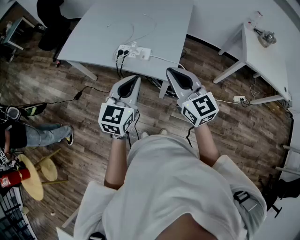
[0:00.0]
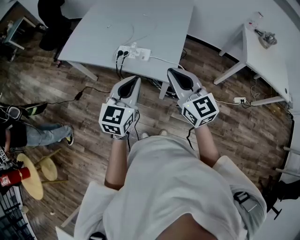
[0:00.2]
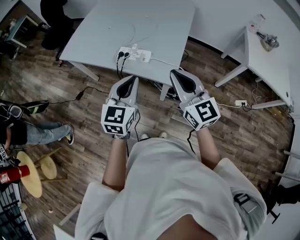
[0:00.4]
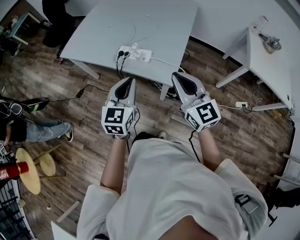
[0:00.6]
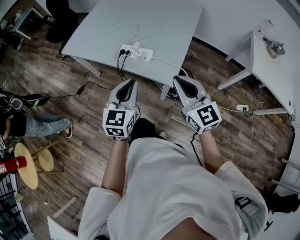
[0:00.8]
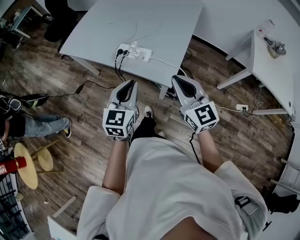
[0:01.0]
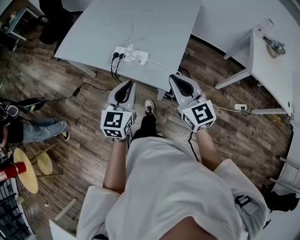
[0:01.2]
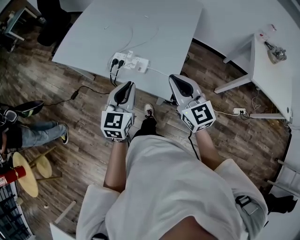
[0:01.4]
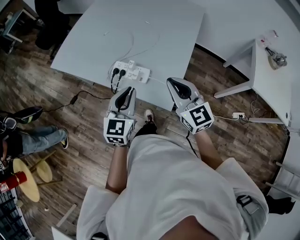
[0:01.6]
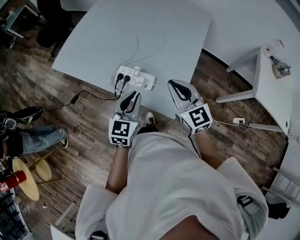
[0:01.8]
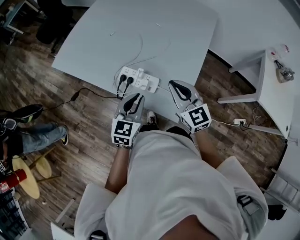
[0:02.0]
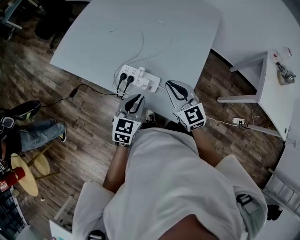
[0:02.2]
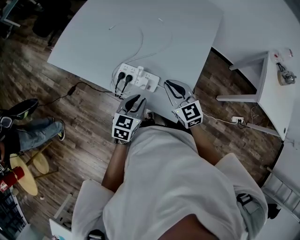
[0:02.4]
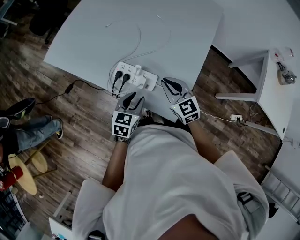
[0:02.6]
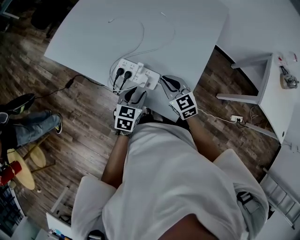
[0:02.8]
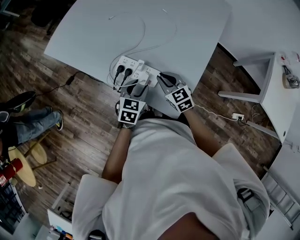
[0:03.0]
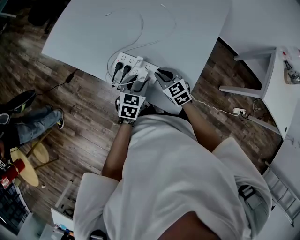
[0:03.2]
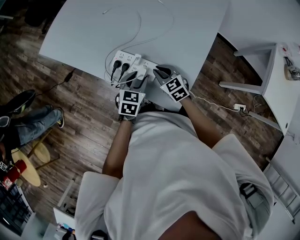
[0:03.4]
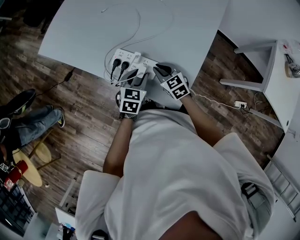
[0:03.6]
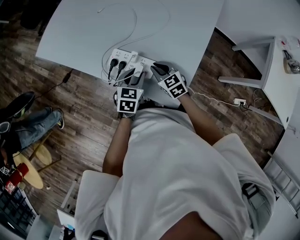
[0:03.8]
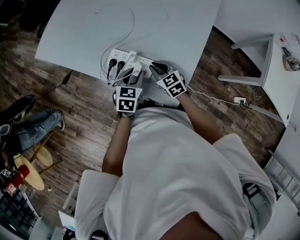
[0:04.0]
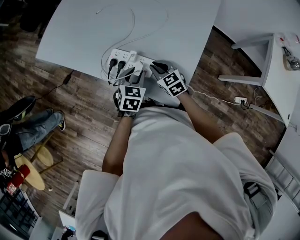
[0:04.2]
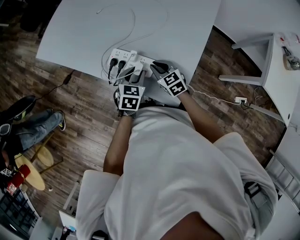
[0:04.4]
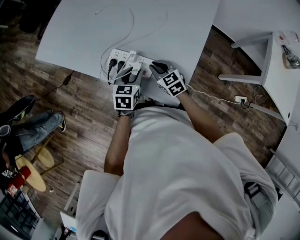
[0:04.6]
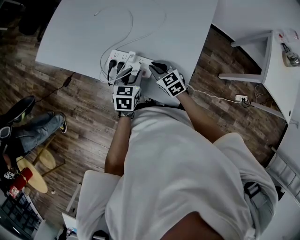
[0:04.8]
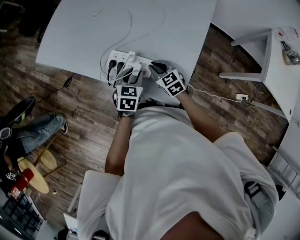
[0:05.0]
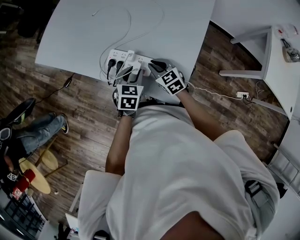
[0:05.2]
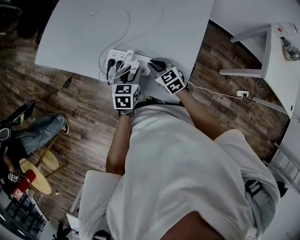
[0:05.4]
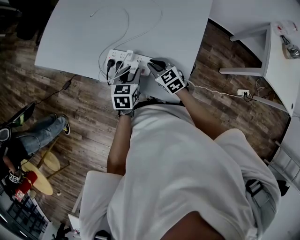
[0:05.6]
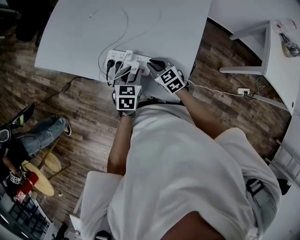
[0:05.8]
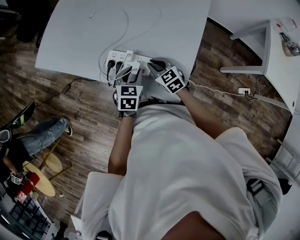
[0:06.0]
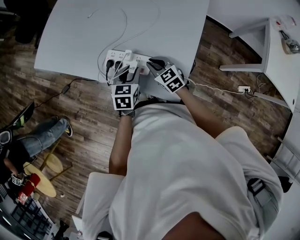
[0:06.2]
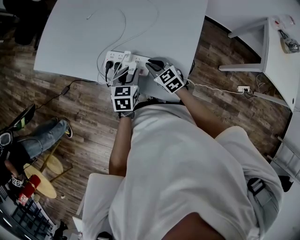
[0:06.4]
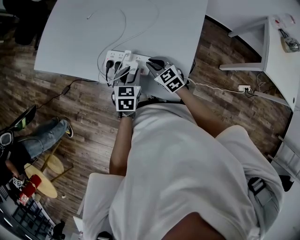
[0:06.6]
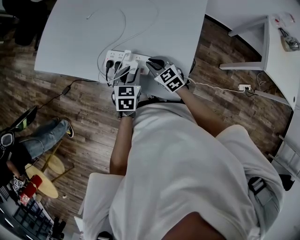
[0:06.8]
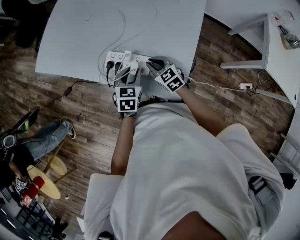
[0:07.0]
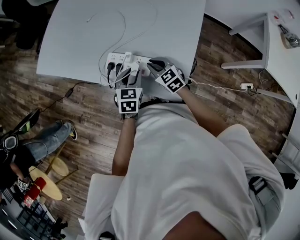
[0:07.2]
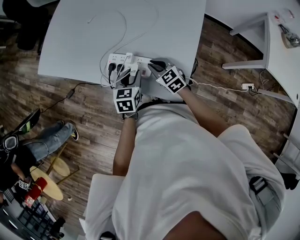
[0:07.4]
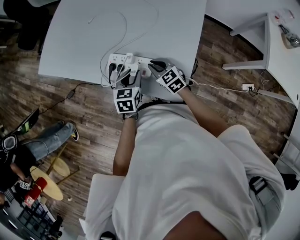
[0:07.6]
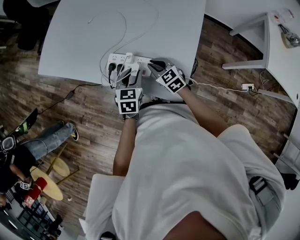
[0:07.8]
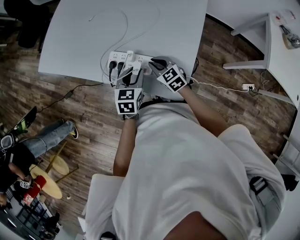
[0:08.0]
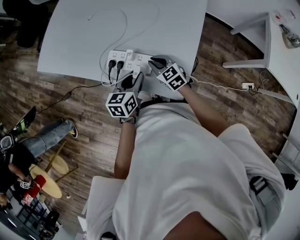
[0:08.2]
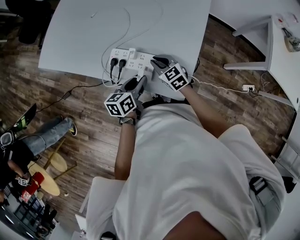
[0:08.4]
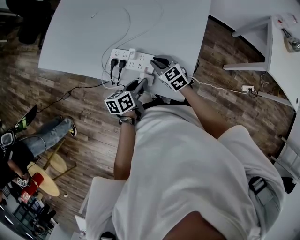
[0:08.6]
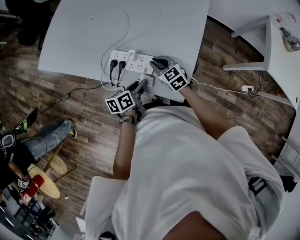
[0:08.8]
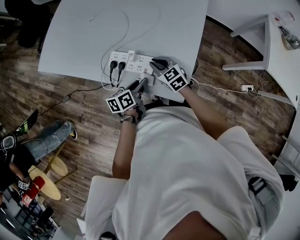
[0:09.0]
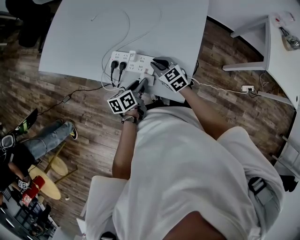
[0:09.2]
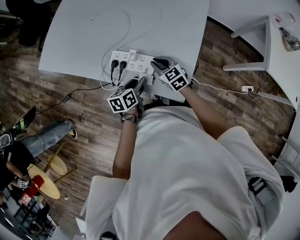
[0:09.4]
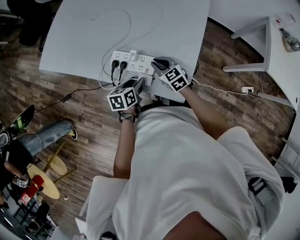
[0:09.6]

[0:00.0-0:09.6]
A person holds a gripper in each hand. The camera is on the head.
0.0 to 1.6 s: Both grippers move forward and downward, about 15 cm.
1.6 to 3.2 s: The two grippers go roughly 25 cm downward and forward. The right gripper rotates approximately 30 degrees, while the left gripper swivels approximately 30 degrees, and opens.
3.2 to 8.0 s: The grippers stay close to where they were, moving slightly.
8.0 to 9.6 s: The left gripper heads downward, covering about 5 cm, and swivels roughly 30 degrees.

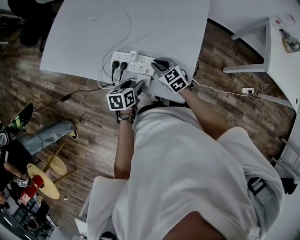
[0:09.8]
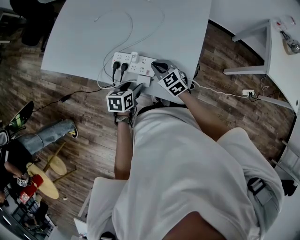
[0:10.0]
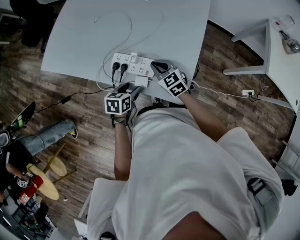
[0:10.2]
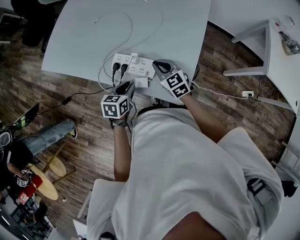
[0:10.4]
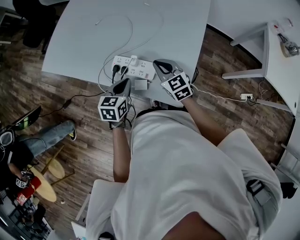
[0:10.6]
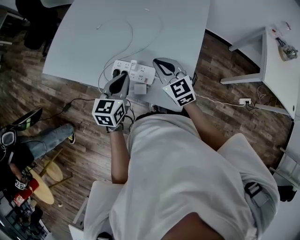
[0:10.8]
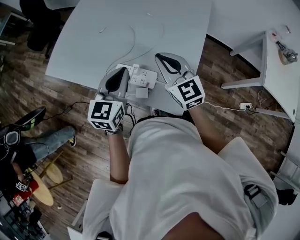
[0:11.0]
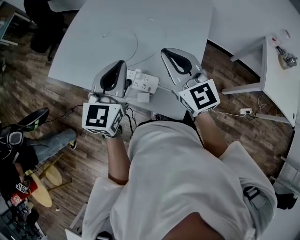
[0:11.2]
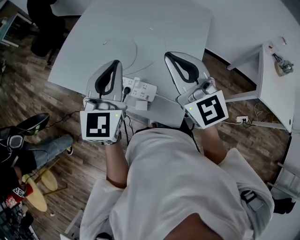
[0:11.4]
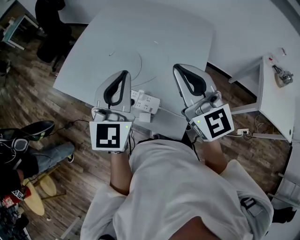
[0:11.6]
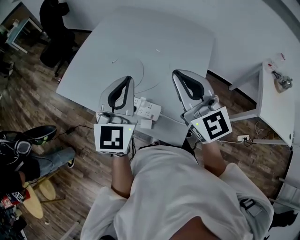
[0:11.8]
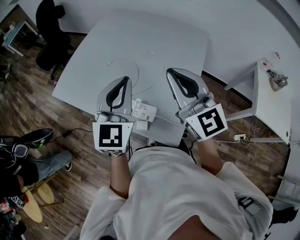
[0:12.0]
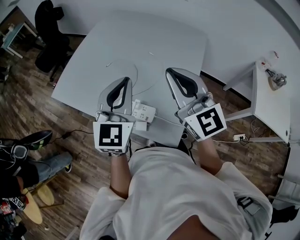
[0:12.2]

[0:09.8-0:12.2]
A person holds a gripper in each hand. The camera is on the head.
9.8 to 11.0 s: Both grippers travel together upward, some 25 cm. The left gripper changes its angle by some 40 degrees, and closes up. The right gripper changes its angle by about 30 degrees.
11.0 to 12.2 s: The two grippers go approximately 15 cm upward. The left gripper turns by roughly 20 degrees.

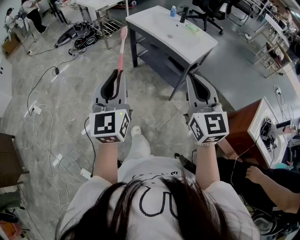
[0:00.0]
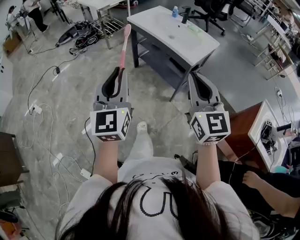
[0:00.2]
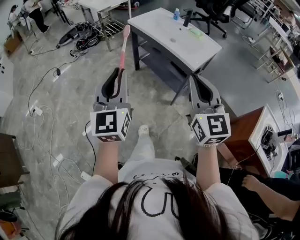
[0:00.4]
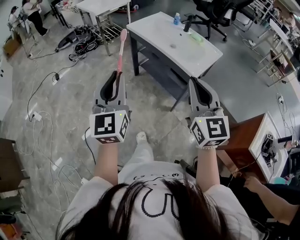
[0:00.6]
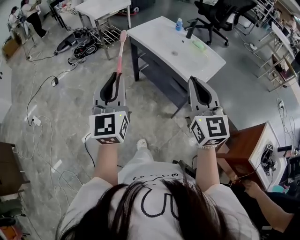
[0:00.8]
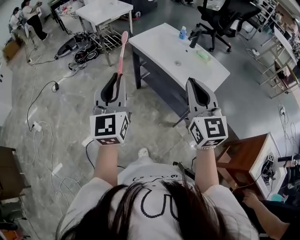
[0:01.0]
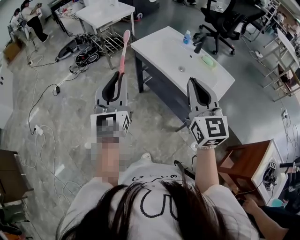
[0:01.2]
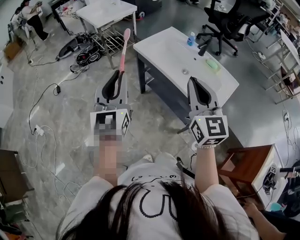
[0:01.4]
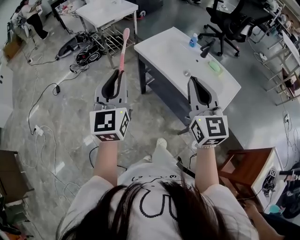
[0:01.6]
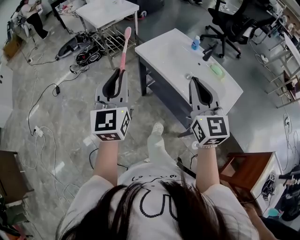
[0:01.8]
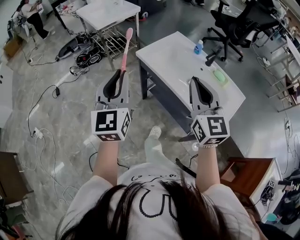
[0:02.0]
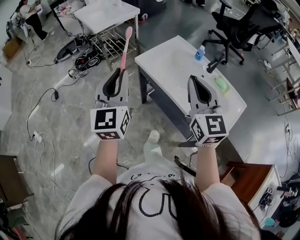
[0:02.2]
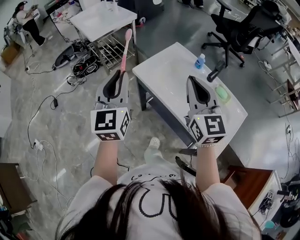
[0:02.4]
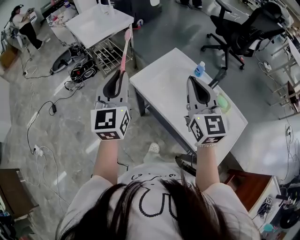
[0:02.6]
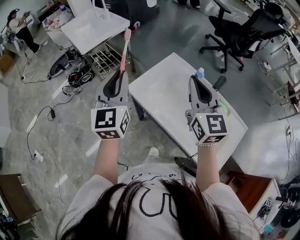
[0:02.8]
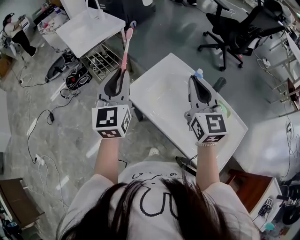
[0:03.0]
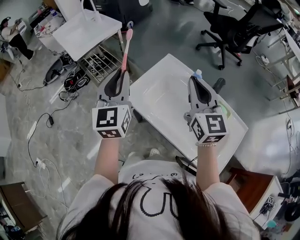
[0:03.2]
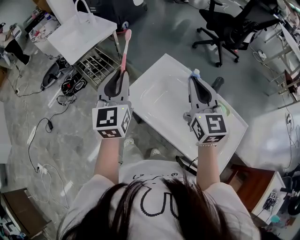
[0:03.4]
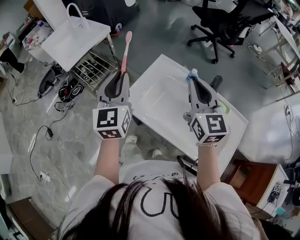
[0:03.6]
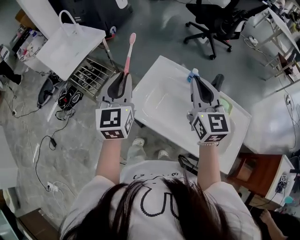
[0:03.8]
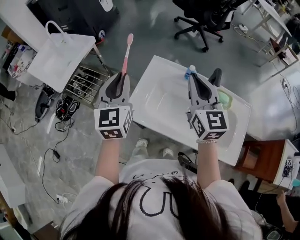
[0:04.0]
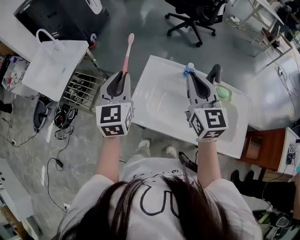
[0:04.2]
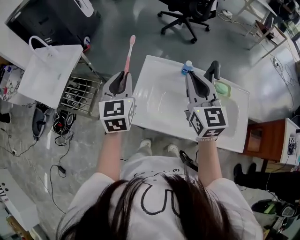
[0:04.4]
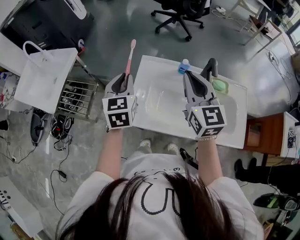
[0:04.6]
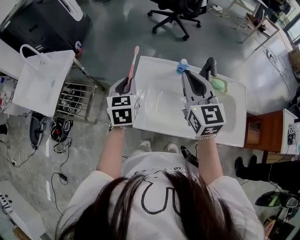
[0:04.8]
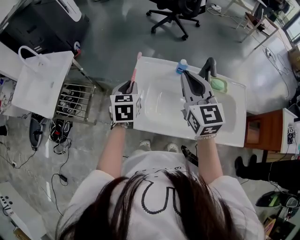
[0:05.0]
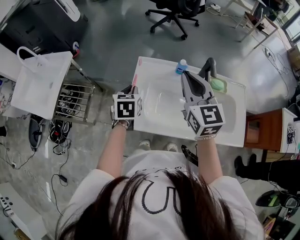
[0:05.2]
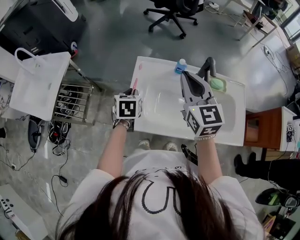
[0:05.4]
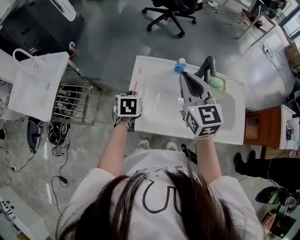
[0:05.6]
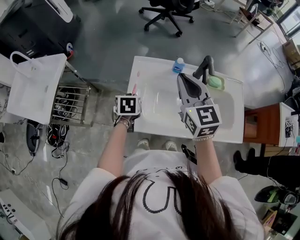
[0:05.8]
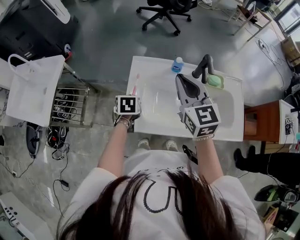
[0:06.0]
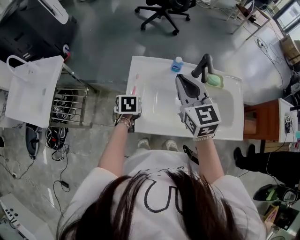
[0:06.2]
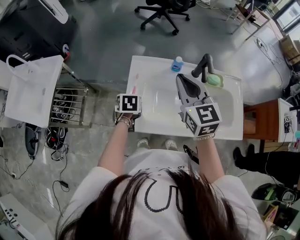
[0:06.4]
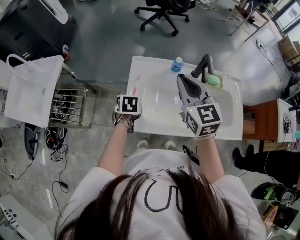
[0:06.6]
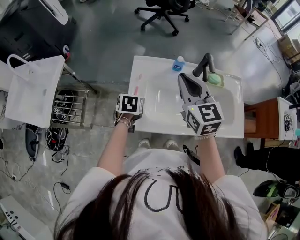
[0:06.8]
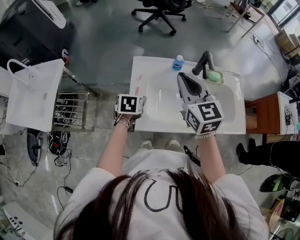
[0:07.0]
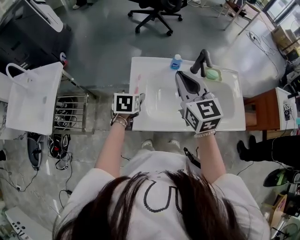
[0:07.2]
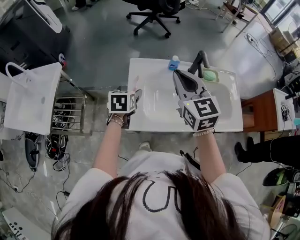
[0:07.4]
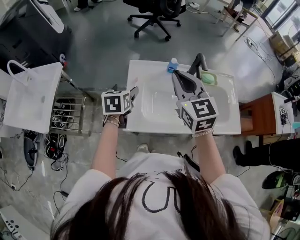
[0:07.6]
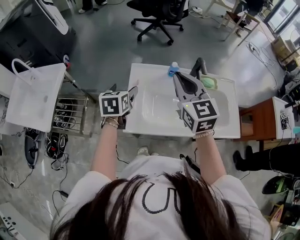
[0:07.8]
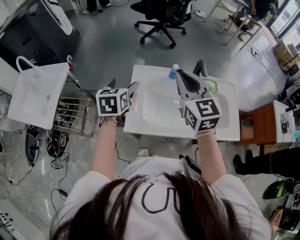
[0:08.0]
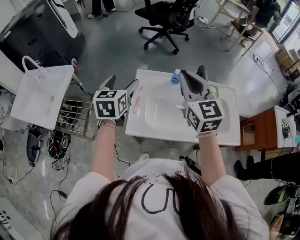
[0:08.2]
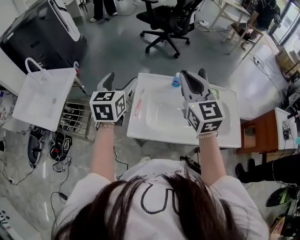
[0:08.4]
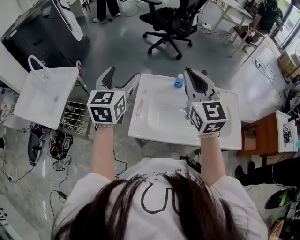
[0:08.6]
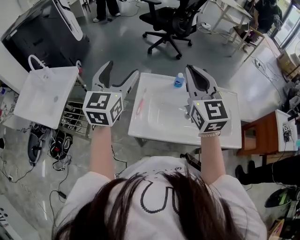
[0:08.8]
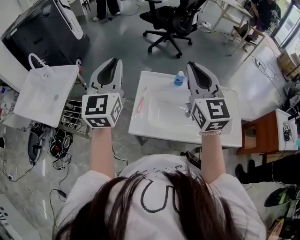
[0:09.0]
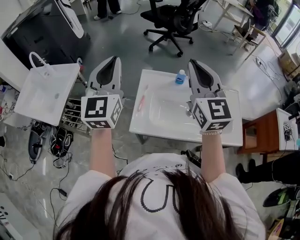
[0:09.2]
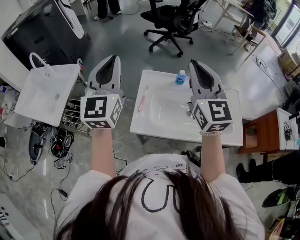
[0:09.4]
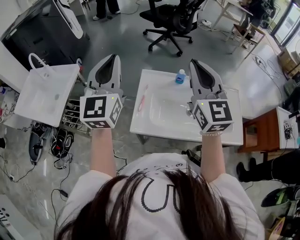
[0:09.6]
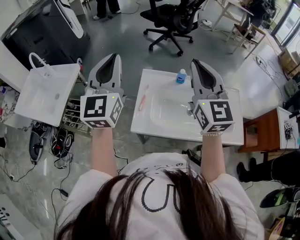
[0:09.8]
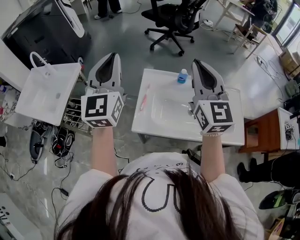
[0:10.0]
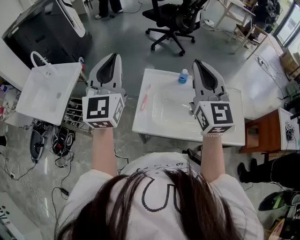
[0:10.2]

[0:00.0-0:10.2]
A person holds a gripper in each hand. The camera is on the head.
0.0 to 1.4 s: The grippers both shift forward by roughly 35 cm.
1.4 to 3.0 s: Both grippers move forward, approximately 40 cm.
3.0 to 4.4 s: The left gripper ends up roughly 20 cm from where it was, and turns by about 30 degrees, while the right gripper changes place by approximately 5 cm, and changes its angle by roughly 30 degrees.
4.4 to 5.8 s: The left gripper travels downward by approximately 20 cm, and tilts its fingers some 40 degrees downward.
5.8 to 7.2 s: The left gripper opens up.
7.2 to 8.8 s: The right gripper goes about 10 cm upward. The left gripper heads upward, covering about 30 cm, and angles its fingers upward, by about 50 degrees.
8.8 to 10.2 s: The left gripper moves upward, roughly 5 cm, and closes up.

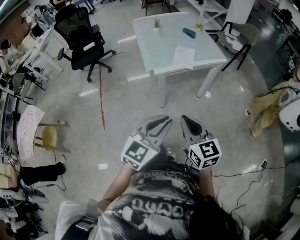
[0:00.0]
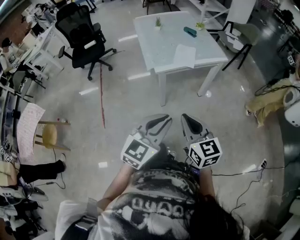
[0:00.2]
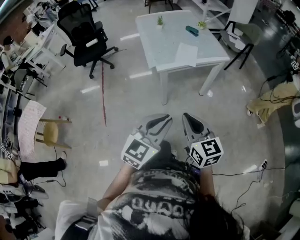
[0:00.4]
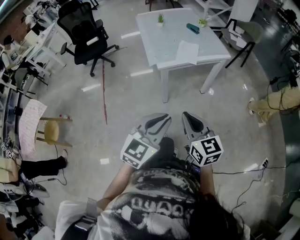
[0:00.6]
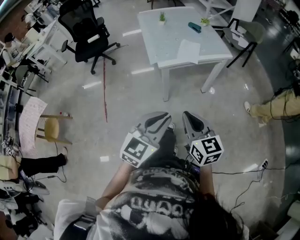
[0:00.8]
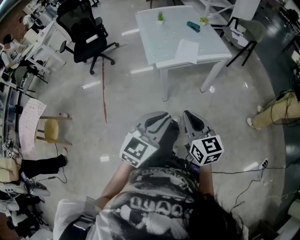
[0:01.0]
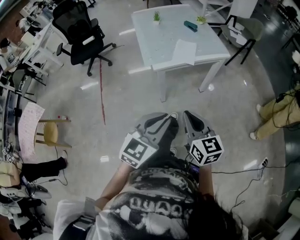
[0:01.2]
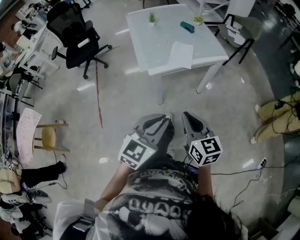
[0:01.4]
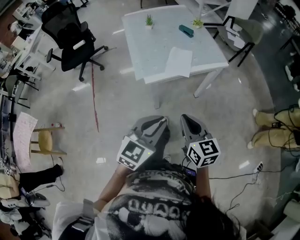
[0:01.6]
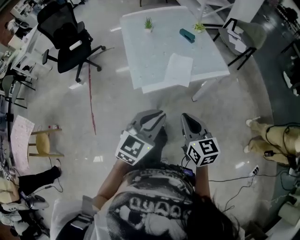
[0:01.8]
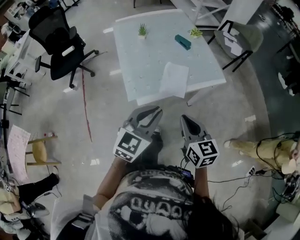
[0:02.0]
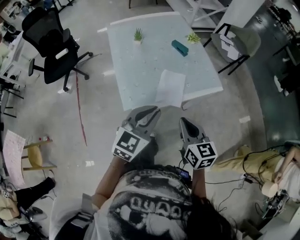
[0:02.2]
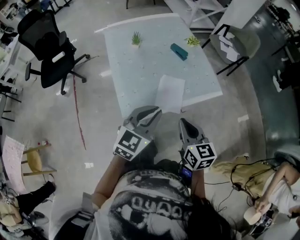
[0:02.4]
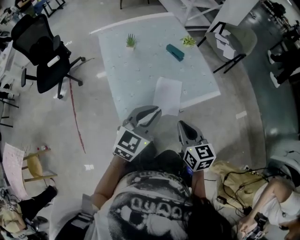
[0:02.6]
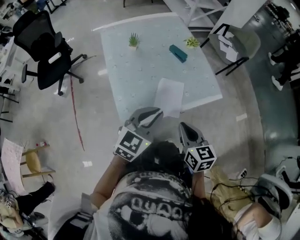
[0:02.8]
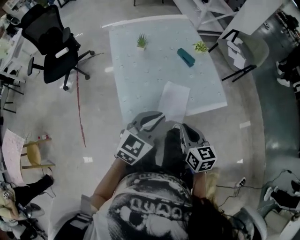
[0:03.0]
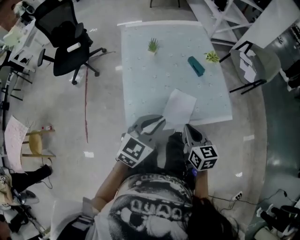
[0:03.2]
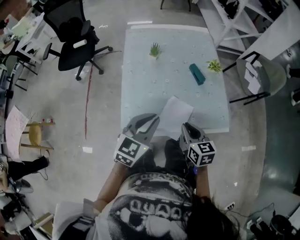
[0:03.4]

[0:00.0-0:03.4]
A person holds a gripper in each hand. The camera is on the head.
0.0 to 1.6 s: Both grippers travel together forward, approximately 15 cm.
1.6 to 3.4 s: The grippers both shift forward by approximately 40 cm.
